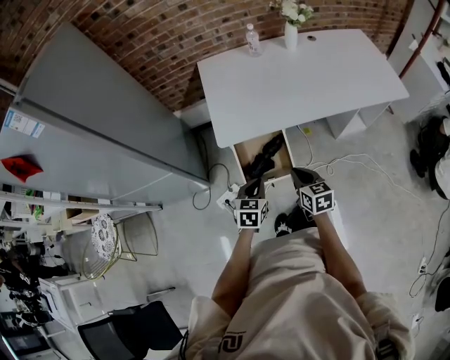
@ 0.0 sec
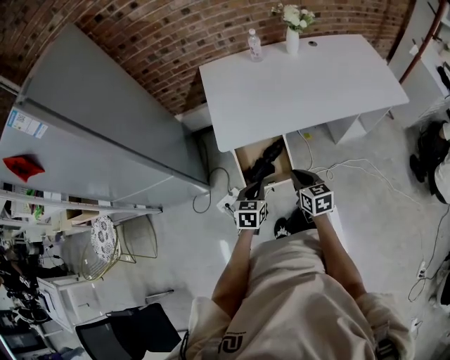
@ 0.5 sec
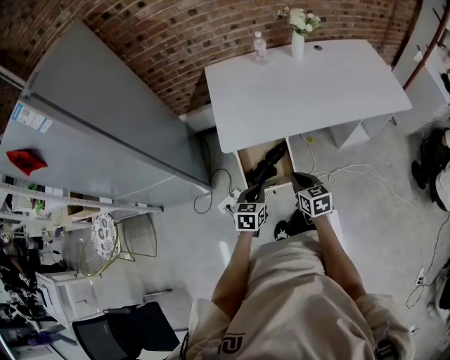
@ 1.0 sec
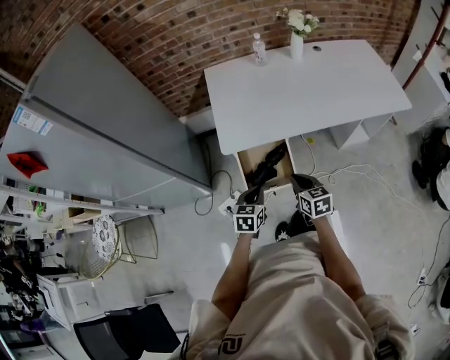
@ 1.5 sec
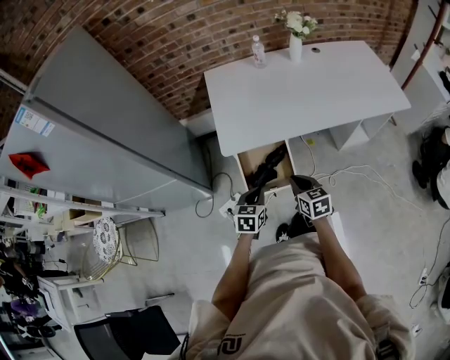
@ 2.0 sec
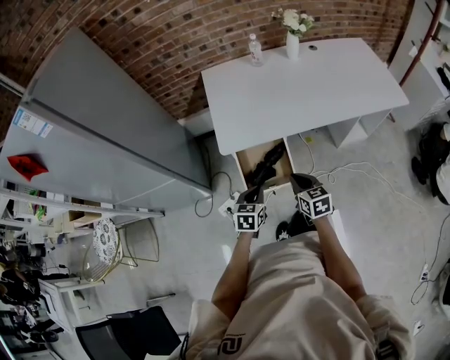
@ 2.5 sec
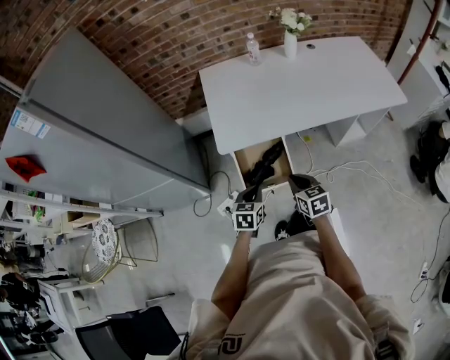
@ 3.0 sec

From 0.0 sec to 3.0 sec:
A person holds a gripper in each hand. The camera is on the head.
From 0.0 sec to 1.5 sec: The two grippers keep their place.
From 1.5 sec to 3.0 sec: The grippers move only a little.

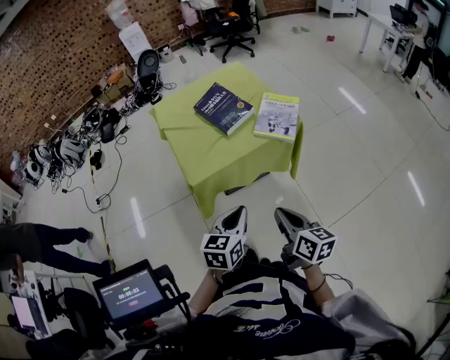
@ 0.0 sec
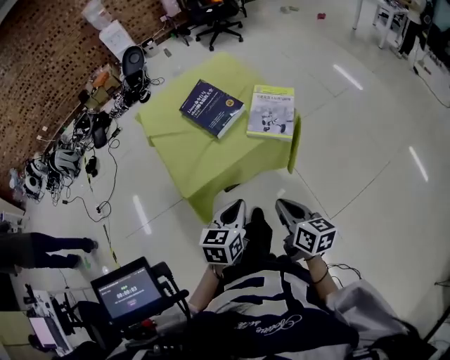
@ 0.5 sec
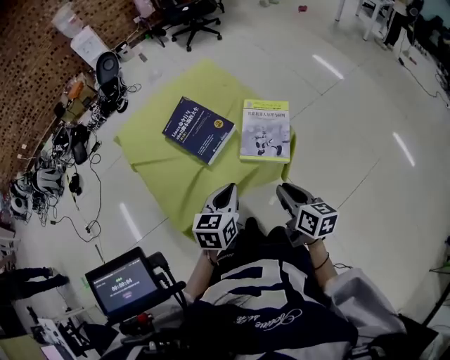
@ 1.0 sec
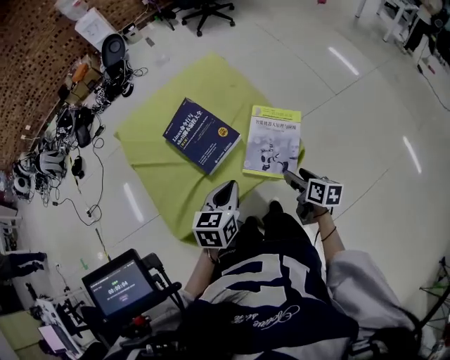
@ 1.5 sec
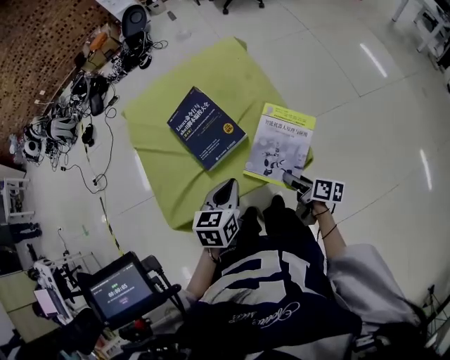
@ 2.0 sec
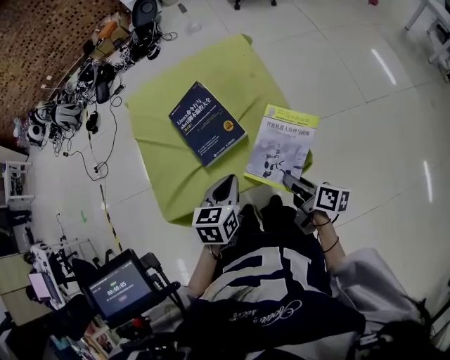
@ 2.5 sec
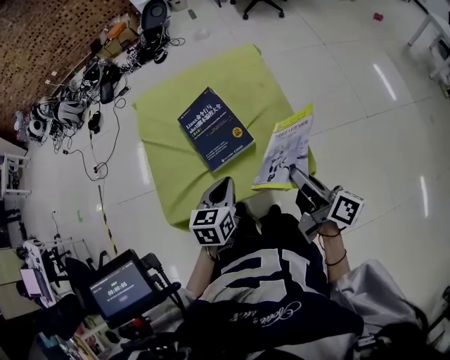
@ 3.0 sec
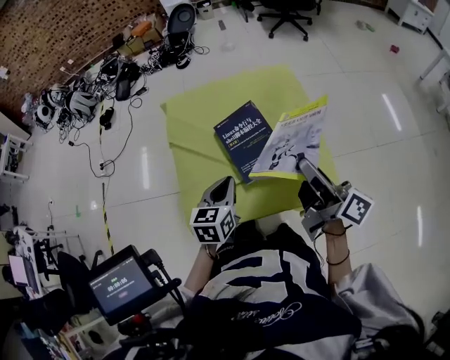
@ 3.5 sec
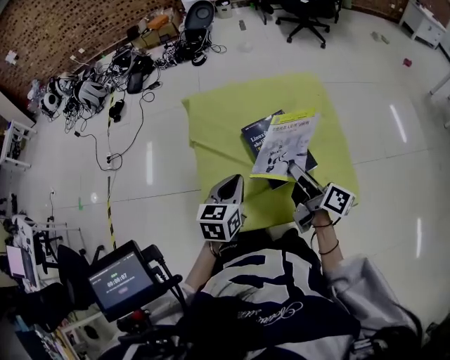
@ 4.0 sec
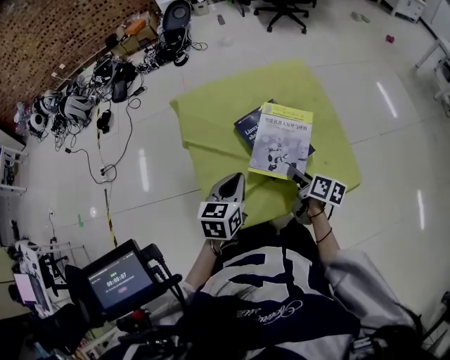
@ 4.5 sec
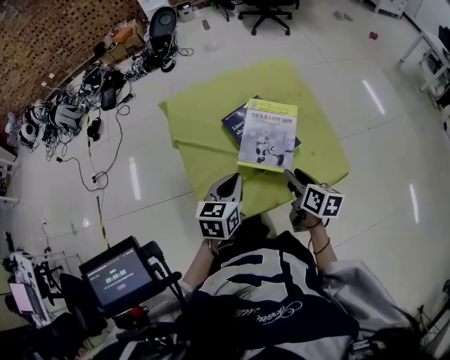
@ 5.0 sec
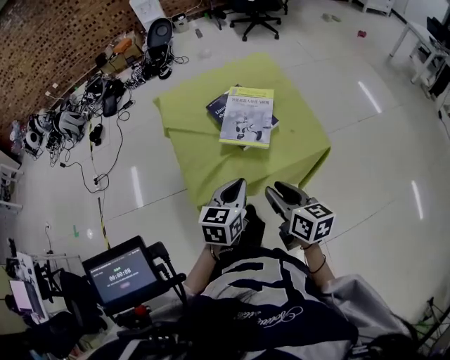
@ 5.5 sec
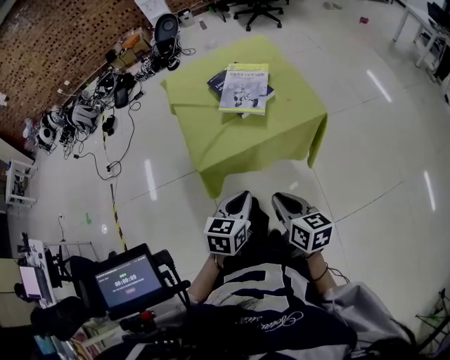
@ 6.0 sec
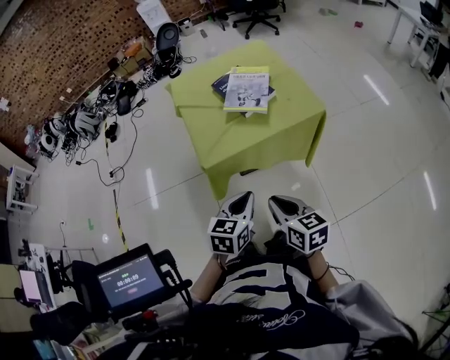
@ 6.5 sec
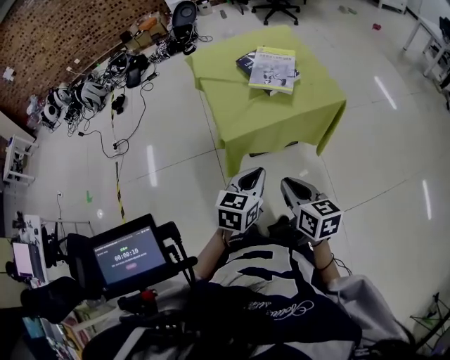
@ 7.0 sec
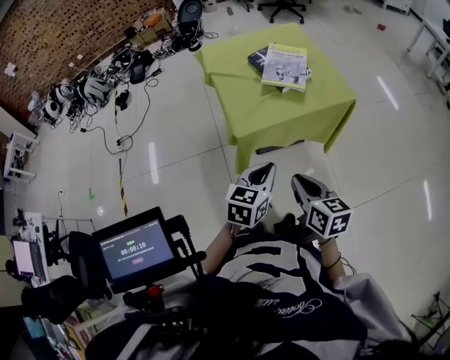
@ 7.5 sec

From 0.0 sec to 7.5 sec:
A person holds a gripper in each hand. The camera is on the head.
From 0.0 sec to 2.0 sec: The right gripper heads forward and downward, covering some 40 cm, rotates some 30 degrees, and opens. Meanwhile the left gripper shifts some 35 cm forward.
From 2.0 sec to 4.0 sec: The right gripper goes some 35 cm to the left, upward and forward, changes its angle by approximately 20 degrees, and closes its fingers; the left gripper is displaced to the left and forward by roughly 25 cm.
From 4.0 sec to 5.5 sec: The left gripper moves backward and to the right, approximately 20 cm. The right gripper travels backward by roughly 25 cm, and turns by approximately 30 degrees.
From 5.5 sec to 7.5 sec: The right gripper goes roughly 25 cm backward and to the left, and closes. The left gripper heads backward, covering roughly 20 cm.

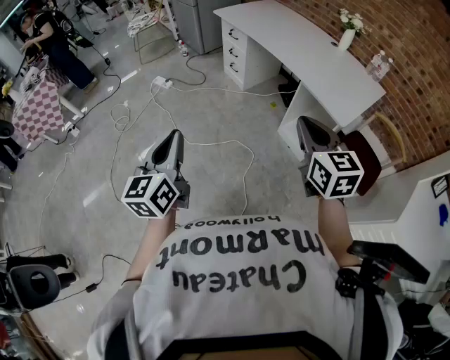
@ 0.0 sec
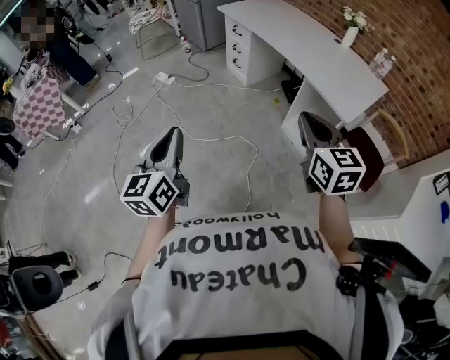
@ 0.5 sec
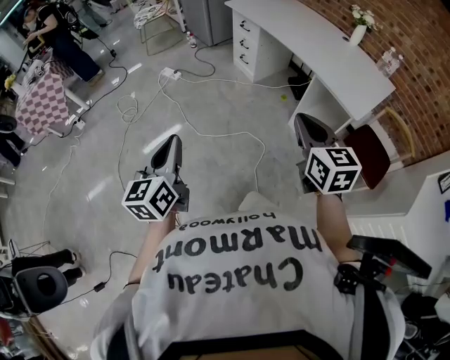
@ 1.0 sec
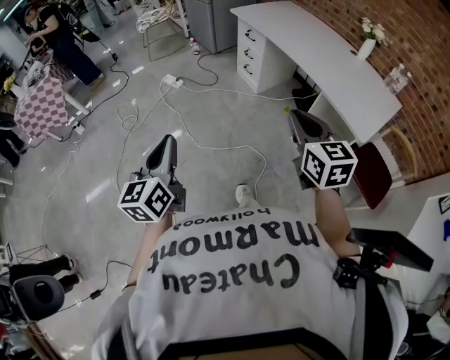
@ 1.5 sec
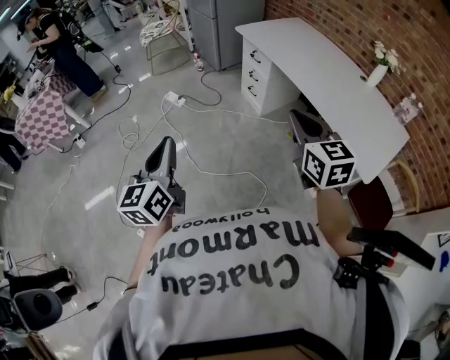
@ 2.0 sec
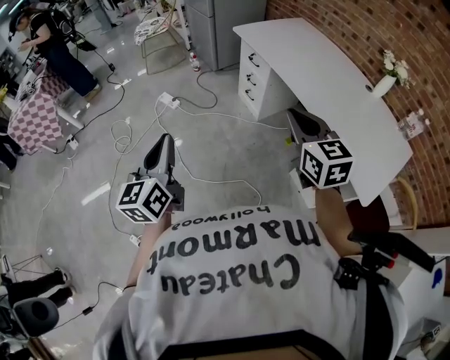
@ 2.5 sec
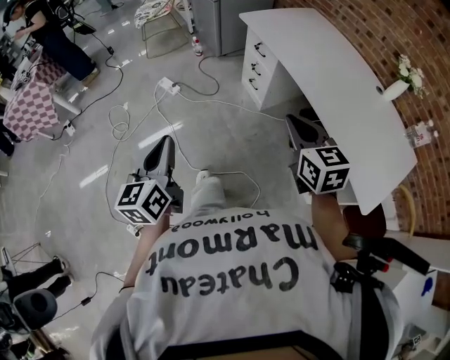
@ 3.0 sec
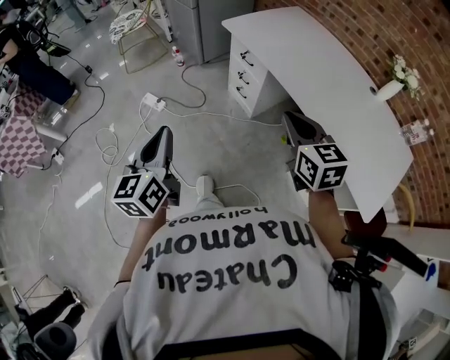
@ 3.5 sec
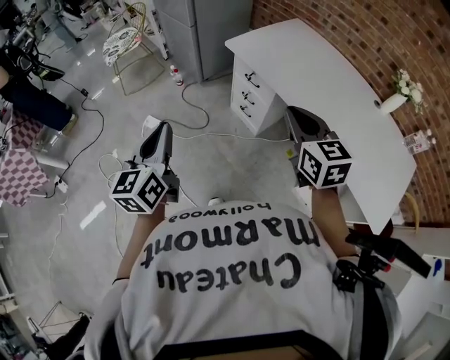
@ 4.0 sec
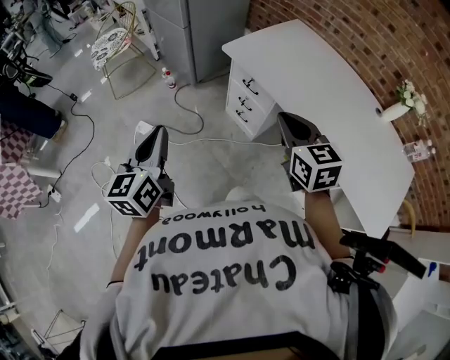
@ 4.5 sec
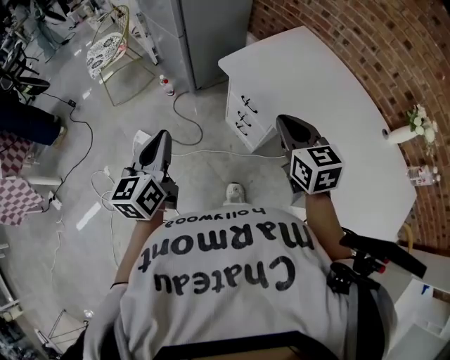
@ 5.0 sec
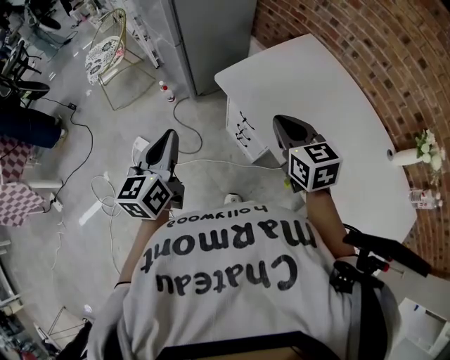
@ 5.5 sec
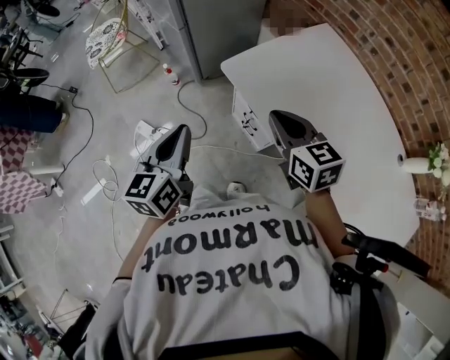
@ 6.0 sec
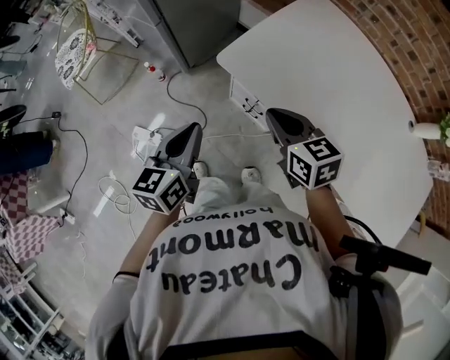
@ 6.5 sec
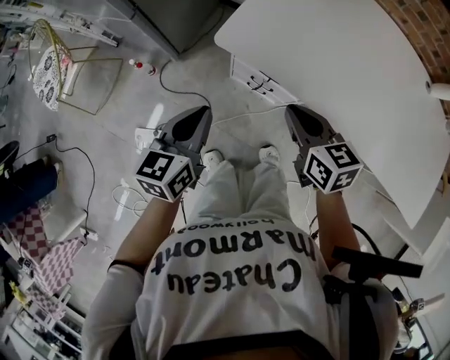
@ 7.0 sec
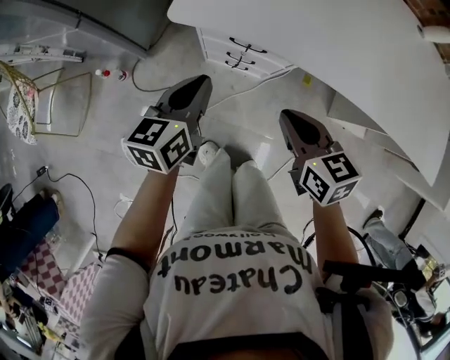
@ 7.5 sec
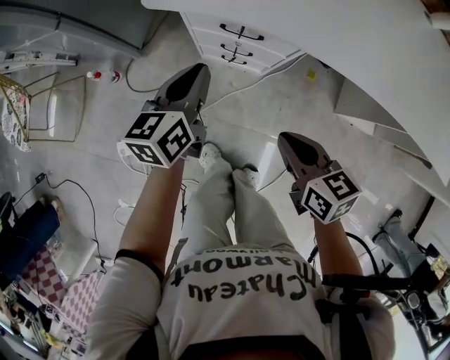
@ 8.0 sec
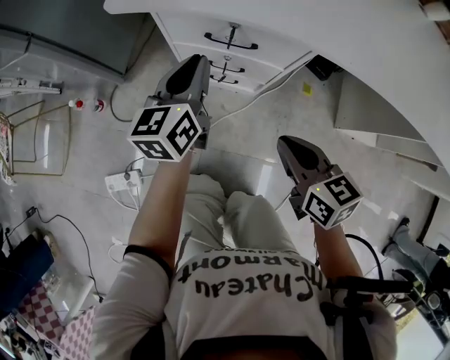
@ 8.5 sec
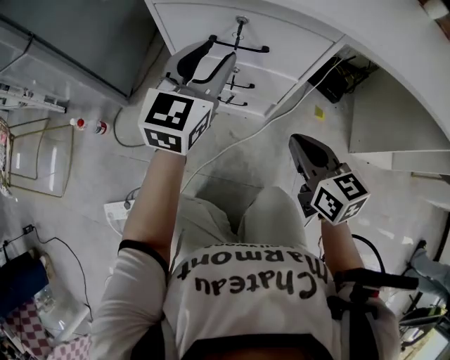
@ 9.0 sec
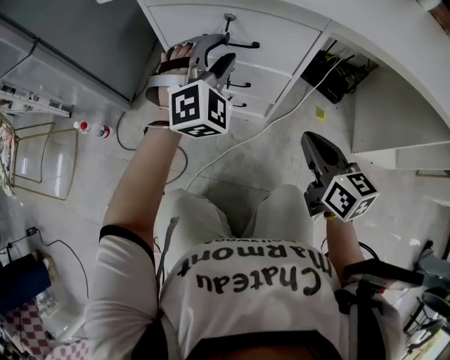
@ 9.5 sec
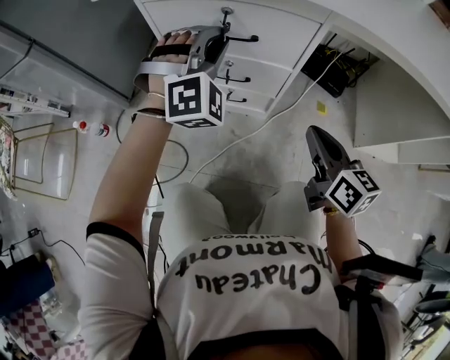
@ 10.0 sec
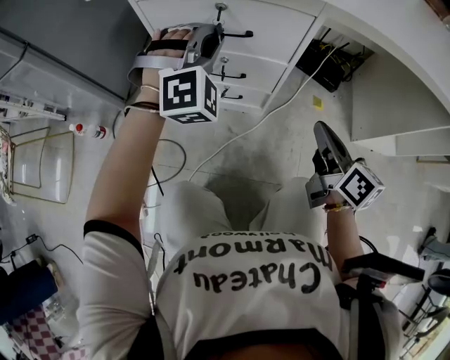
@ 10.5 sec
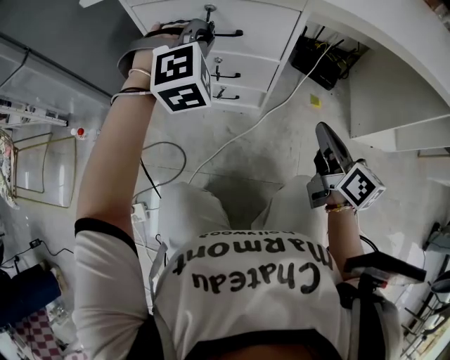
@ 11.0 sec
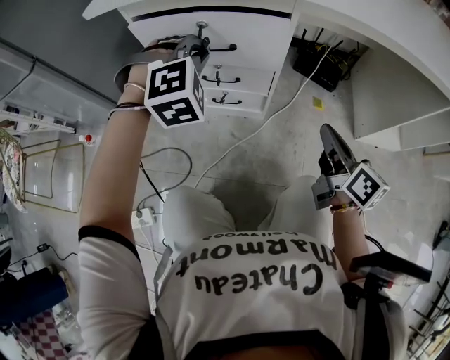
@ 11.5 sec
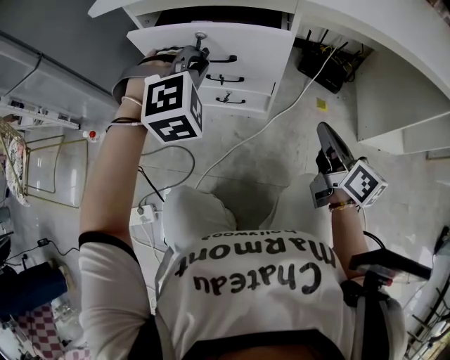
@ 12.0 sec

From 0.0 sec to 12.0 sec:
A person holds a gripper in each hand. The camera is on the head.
From 0.0 sec to 2.0 sec: The two grippers go approximately 25 cm forward.
From 2.0 sec to 4.0 sec: Both grippers move forward, about 40 cm.
From 4.0 sec to 6.0 sec: Both grippers move forward, roughly 30 cm.
From 6.0 sec to 8.0 sec: The two grippers go some 30 cm downward. The left gripper swivels some 50 degrees; the right gripper changes its angle by approximately 40 degrees.
From 8.0 sec to 10.0 sec: The left gripper is displaced downward, forward and to the right by approximately 20 cm, rotates around the line of its fingers by approximately 100 degrees, clockwise from behind, and opens, then closes once more, while the right gripper shifts some 20 cm downward, to the right and forward, and rotates about 30 degrees.
From 10.0 sec to 12.0 sec: The left gripper goes some 5 cm backward, and changes its angle by about 20 degrees.

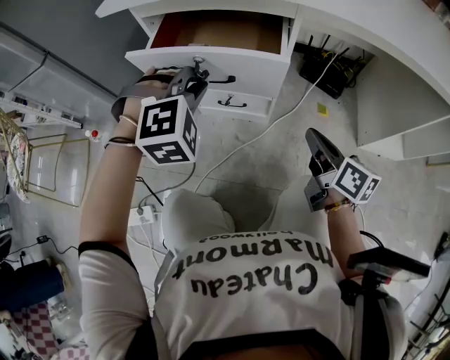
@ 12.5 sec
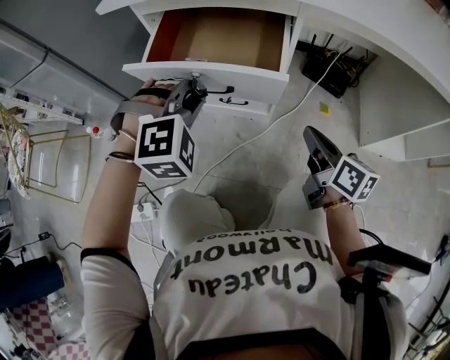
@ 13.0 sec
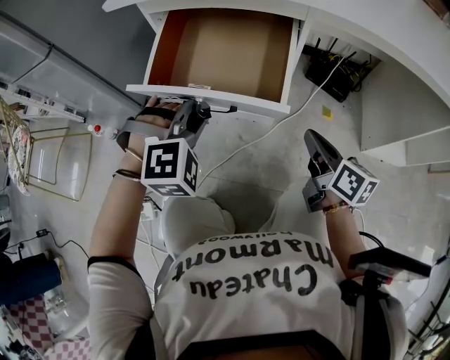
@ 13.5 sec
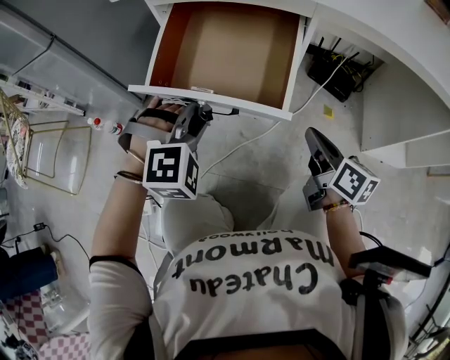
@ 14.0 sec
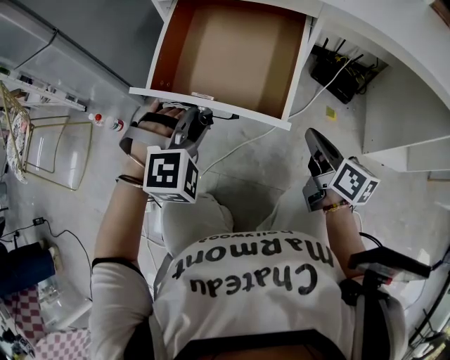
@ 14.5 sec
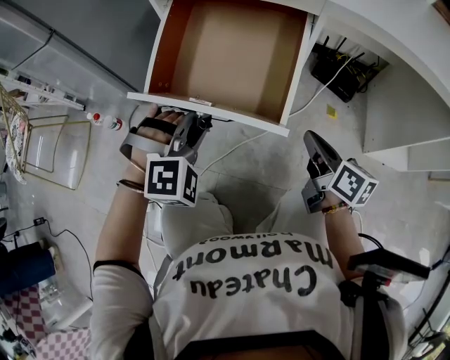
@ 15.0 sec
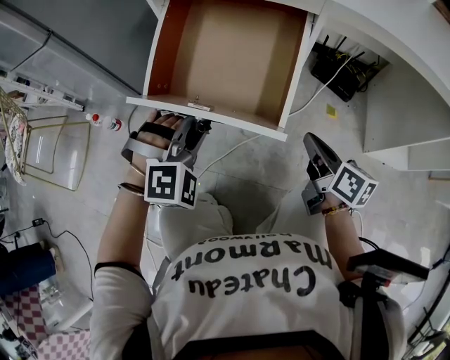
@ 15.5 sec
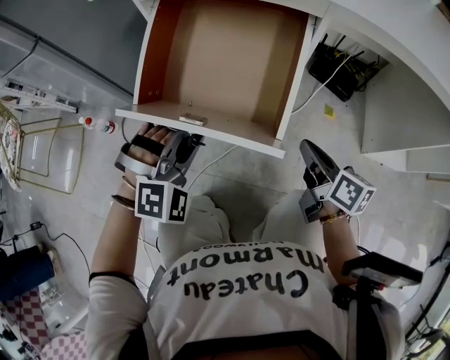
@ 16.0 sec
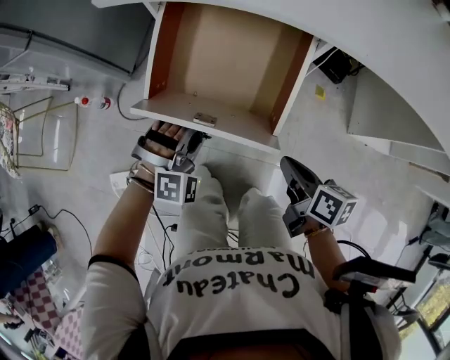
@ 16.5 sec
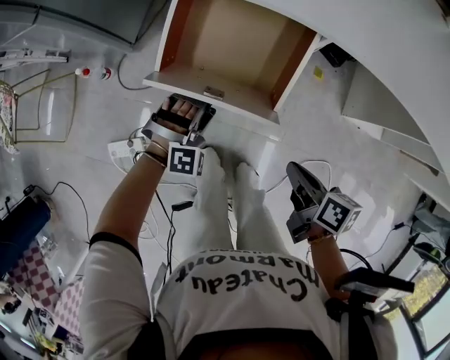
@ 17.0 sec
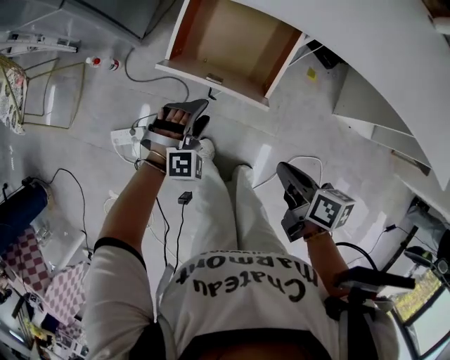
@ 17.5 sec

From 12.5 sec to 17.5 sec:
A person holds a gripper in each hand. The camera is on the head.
From 12.5 sec to 15.0 sec: The left gripper heads backward and downward, covering approximately 10 cm.
From 15.0 sec to 17.5 sec: The left gripper goes approximately 10 cm backward, and opens, while the right gripper shifts roughly 25 cm upward and backward, and changes its angle by roughly 30 degrees.
